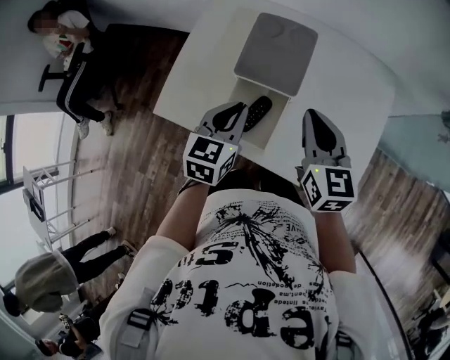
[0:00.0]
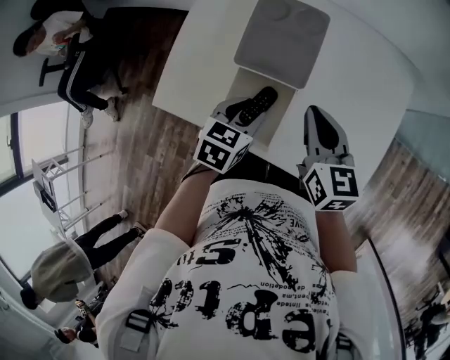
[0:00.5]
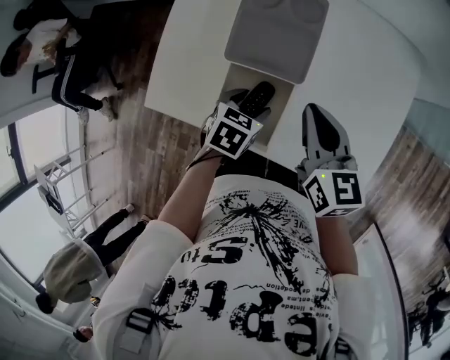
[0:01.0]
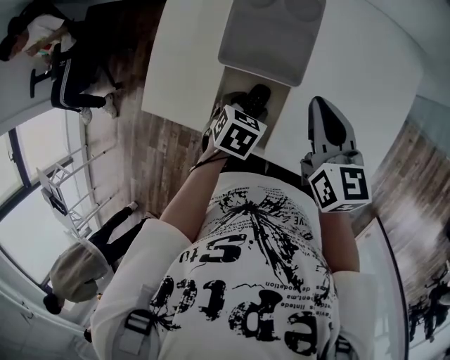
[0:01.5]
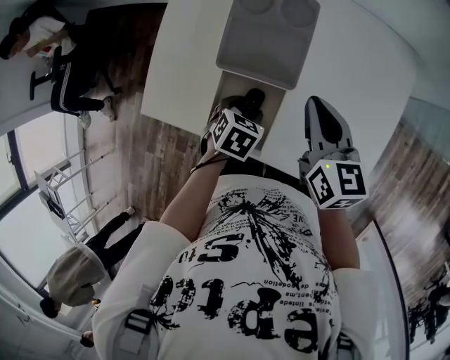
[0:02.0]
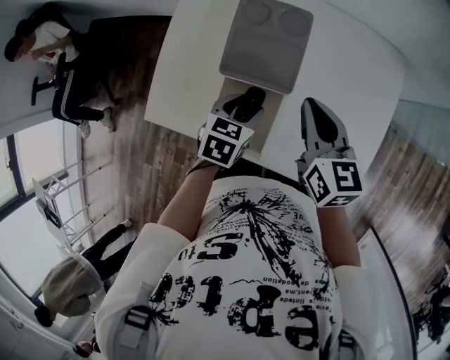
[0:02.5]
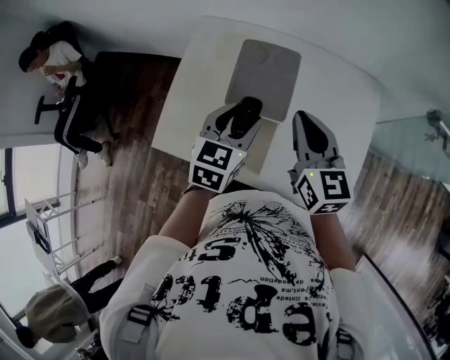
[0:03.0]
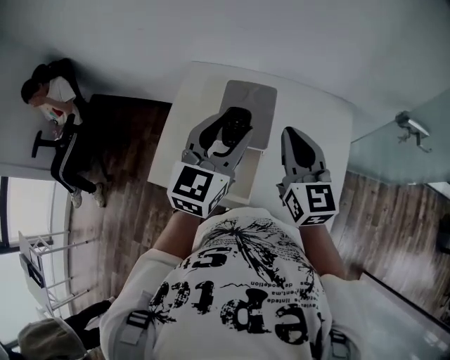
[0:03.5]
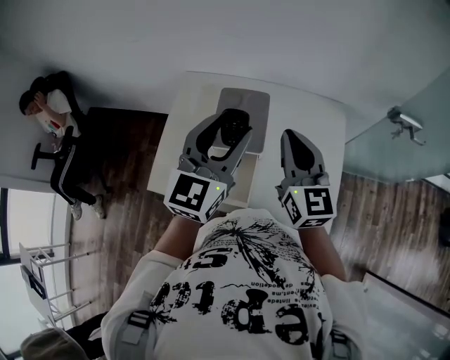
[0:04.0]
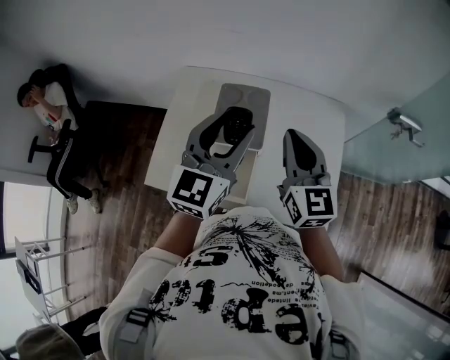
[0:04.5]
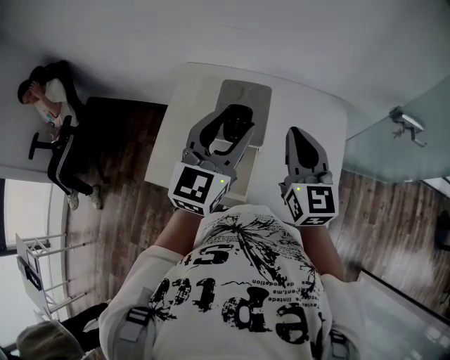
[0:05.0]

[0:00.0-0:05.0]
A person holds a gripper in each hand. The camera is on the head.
0:00.0 to 0:02.5: The right gripper ends up approximately 5 cm from where it was, while the left gripper heads downward, covering about 10 cm, turns by some 20 degrees, and opens.
0:02.5 to 0:05.0: The right gripper shifts some 15 cm upward, and turns by some 30 degrees; the left gripper moves upward, some 30 cm, and angles its fingers upward, by approximately 50 degrees.

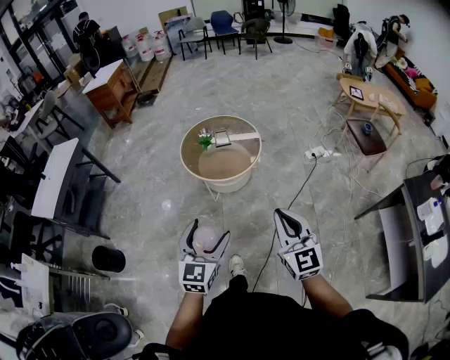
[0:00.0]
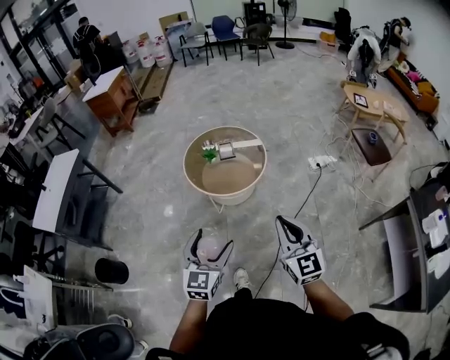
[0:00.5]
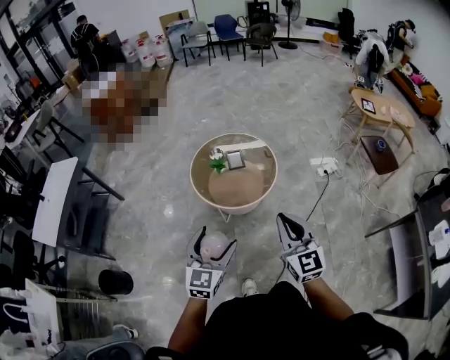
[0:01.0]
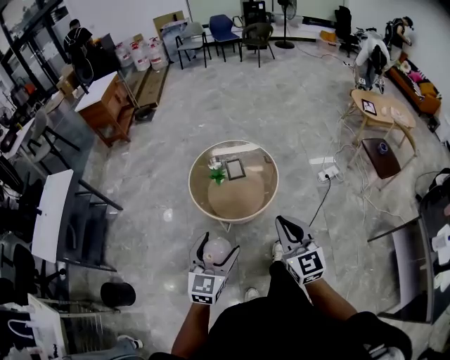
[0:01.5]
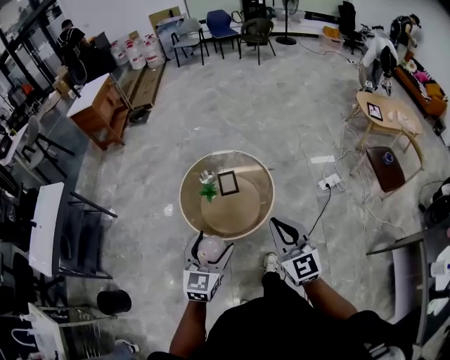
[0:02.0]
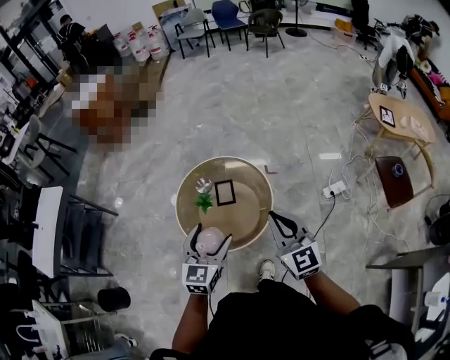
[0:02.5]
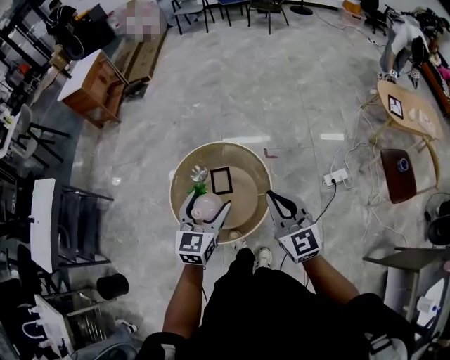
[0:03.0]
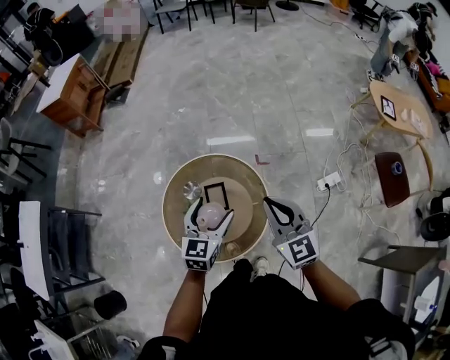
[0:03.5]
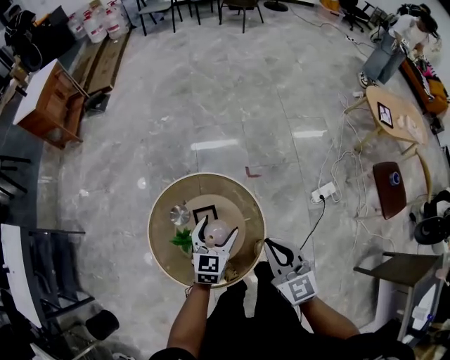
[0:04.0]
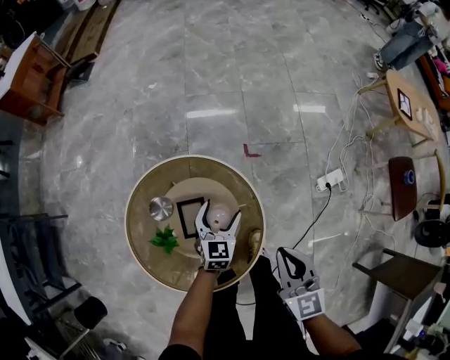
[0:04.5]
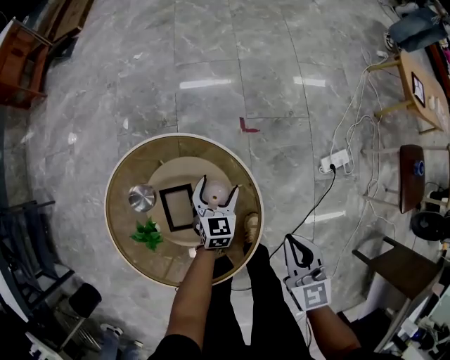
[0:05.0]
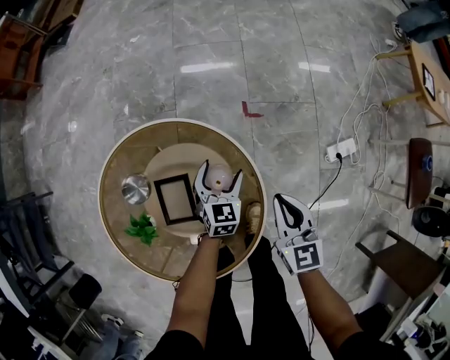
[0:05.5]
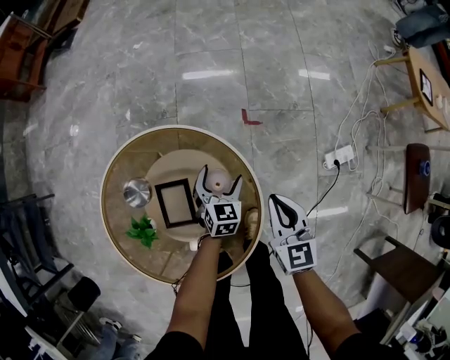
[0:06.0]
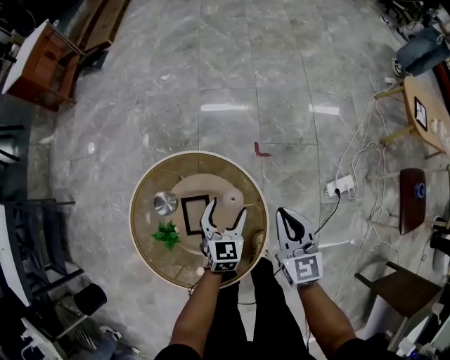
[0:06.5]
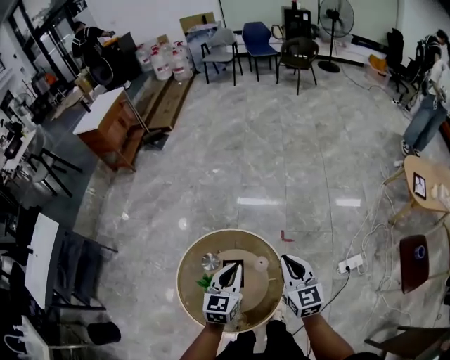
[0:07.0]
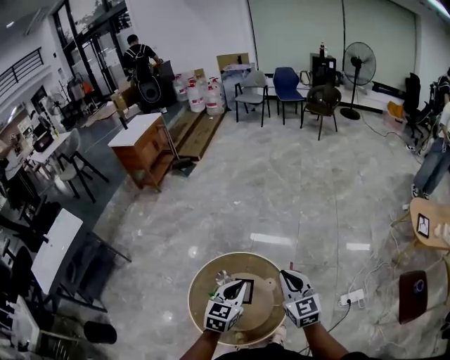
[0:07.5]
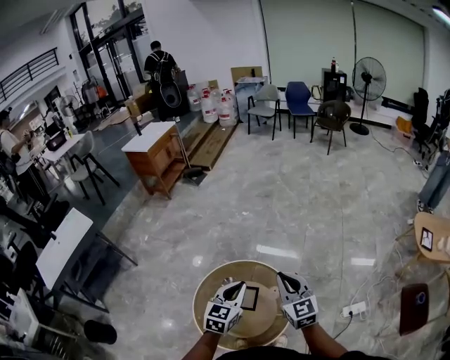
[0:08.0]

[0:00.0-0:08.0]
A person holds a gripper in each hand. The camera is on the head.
0:00.0 to 0:02.0: Both grippers move forward, approximately 35 cm.
0:02.0 to 0:04.0: Both grippers travel together forward and downward, about 40 cm.
0:04.0 to 0:06.0: Both grippers move downward, about 30 cm.
0:06.0 to 0:08.0: The grippers both shift upward by some 50 cm. The left gripper rotates roughly 20 degrees, and closes up; the right gripper changes its angle by approximately 30 degrees.

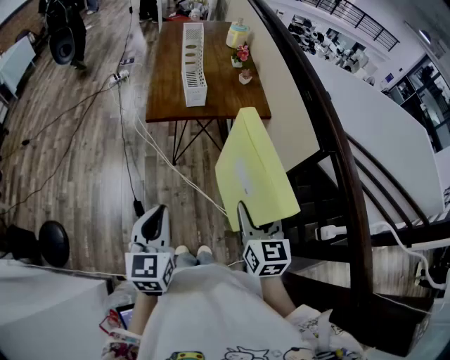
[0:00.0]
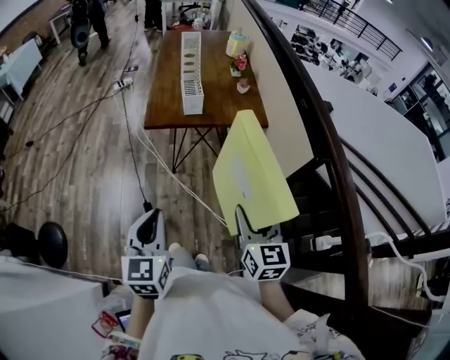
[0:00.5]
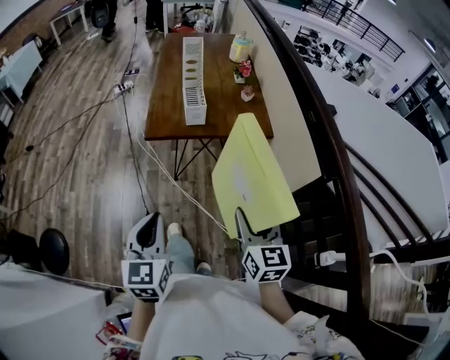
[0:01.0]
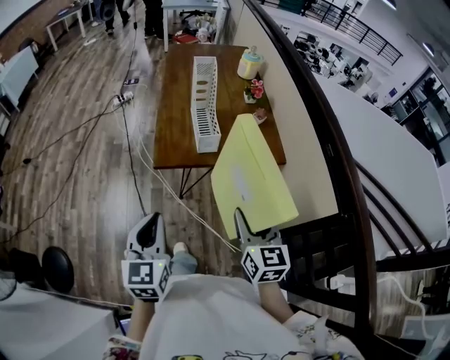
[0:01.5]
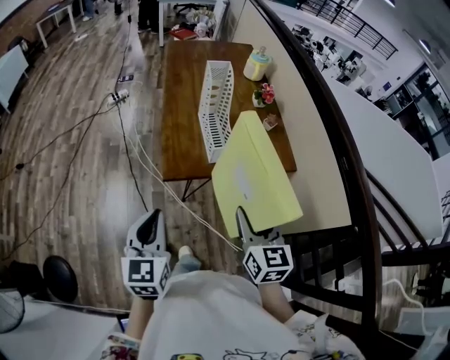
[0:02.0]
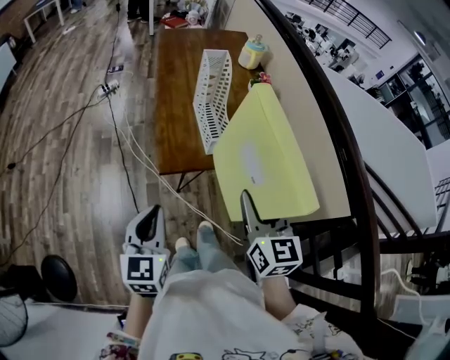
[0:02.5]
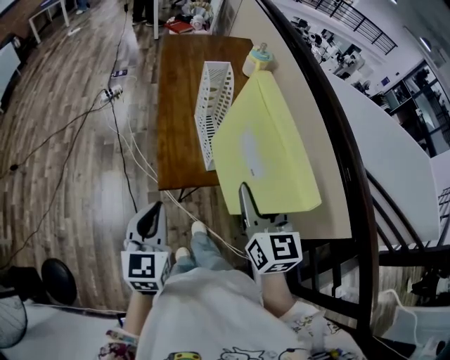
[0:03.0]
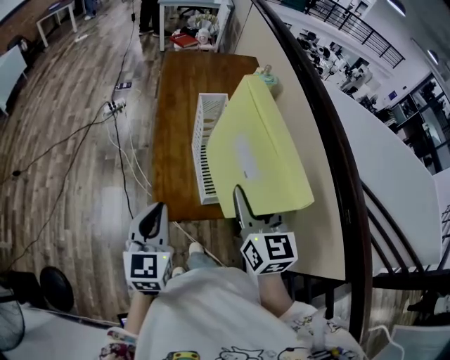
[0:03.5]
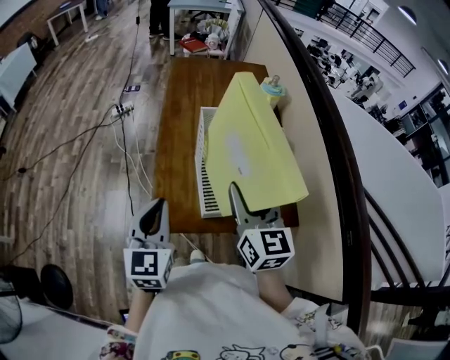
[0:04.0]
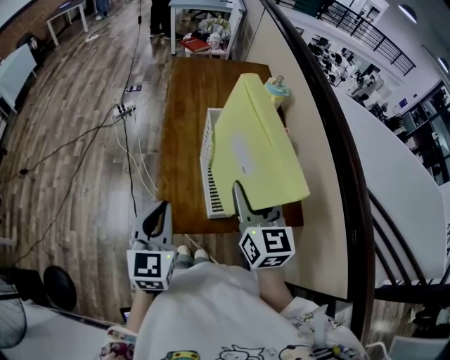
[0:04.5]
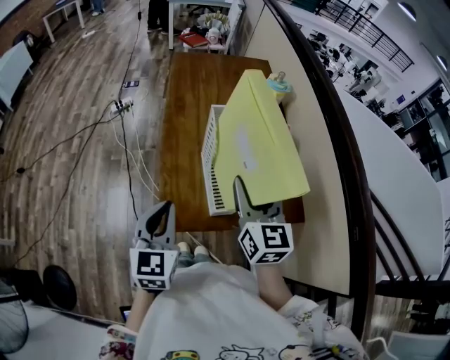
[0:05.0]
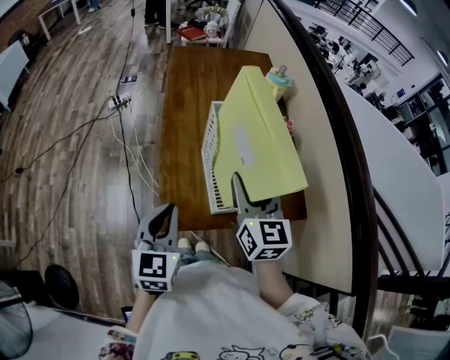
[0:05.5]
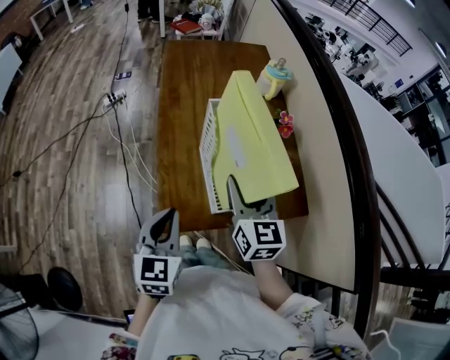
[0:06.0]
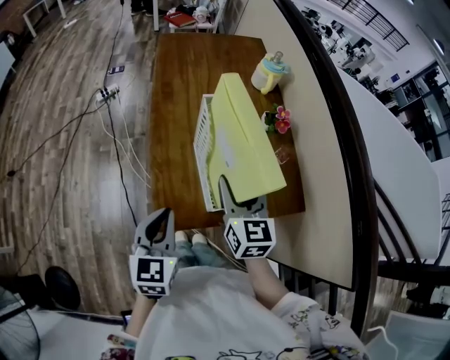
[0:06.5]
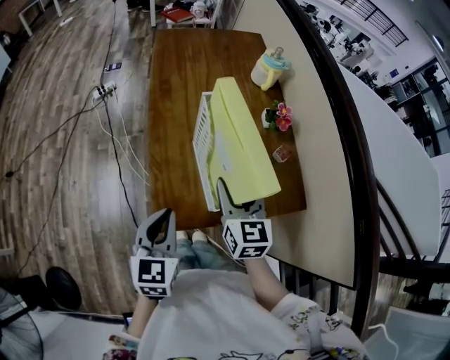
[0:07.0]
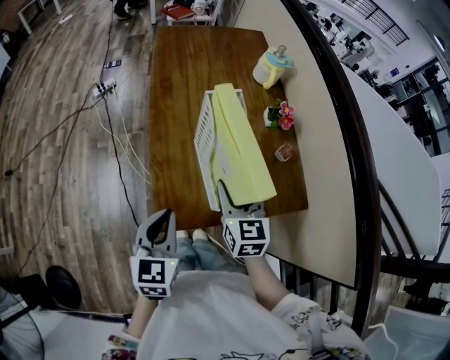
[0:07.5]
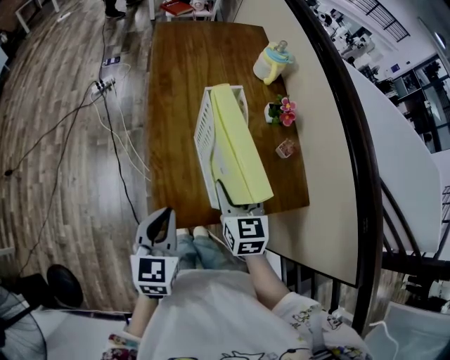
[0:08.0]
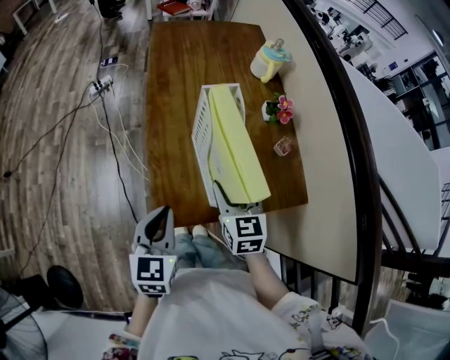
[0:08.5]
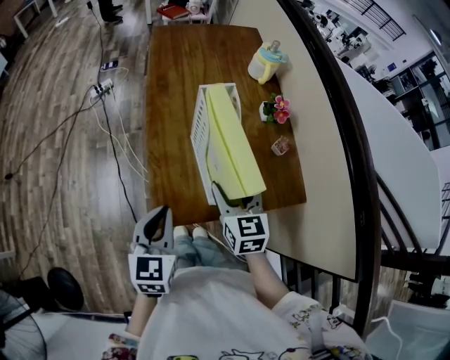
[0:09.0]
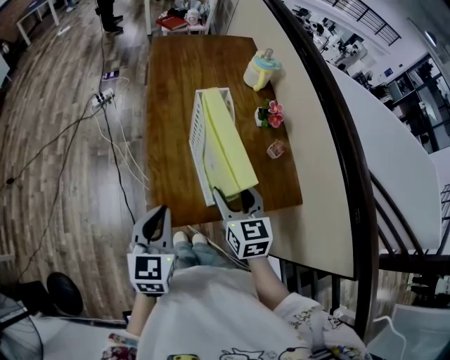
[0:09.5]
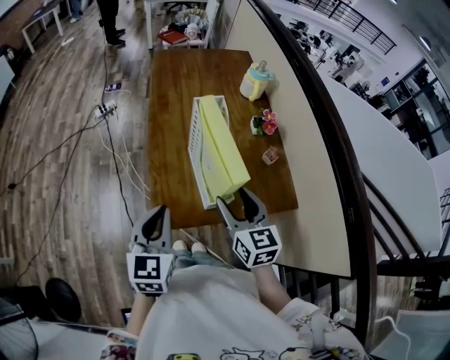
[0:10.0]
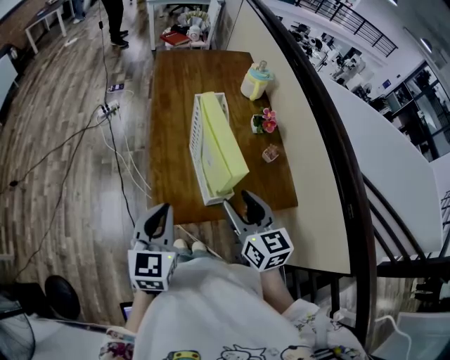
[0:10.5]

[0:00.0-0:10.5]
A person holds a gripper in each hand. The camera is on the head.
0:00.0 to 0:02.0: Both grippers move forward and to the left, some 30 cm.
0:02.0 to 0:04.0: Both grippers travel together forward, approximately 25 cm.
0:04.0 to 0:06.5: Both grippers move downward, some 5 cm.
0:06.5 to 0:08.5: The right gripper goes some 5 cm downward.
0:08.5 to 0:10.5: The right gripper shifts roughly 10 cm backward and upward. The left gripper moves upward, some 5 cm.

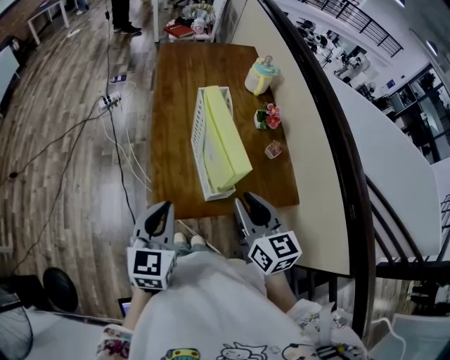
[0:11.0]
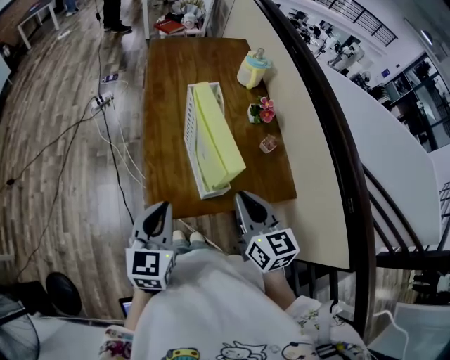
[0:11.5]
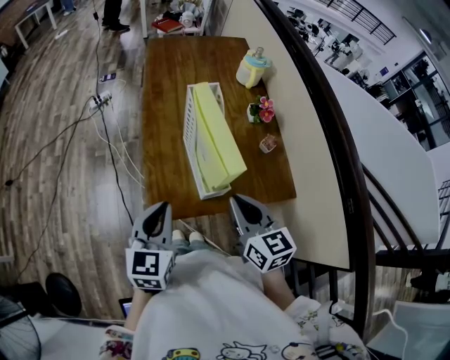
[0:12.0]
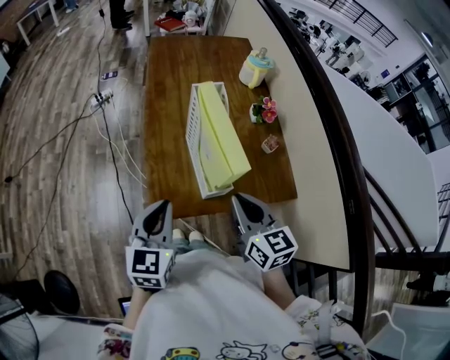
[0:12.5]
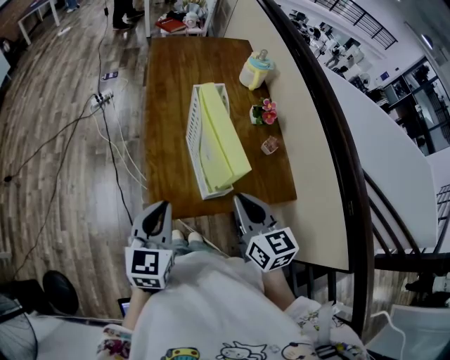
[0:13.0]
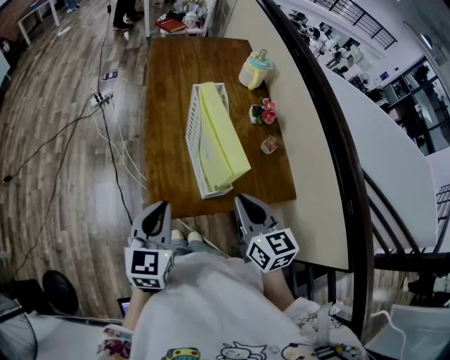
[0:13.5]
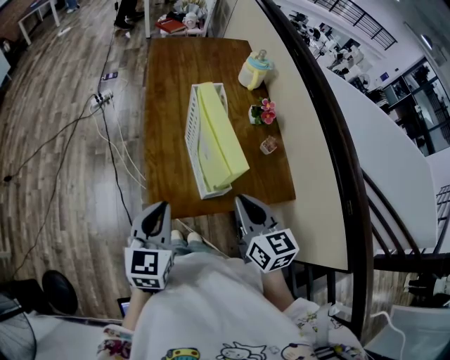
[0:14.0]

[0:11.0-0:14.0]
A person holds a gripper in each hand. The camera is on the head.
0:11.0 to 0:12.5: The right gripper closes its fingers.
0:12.5 to 0:14.0: Neither gripper changes place.
